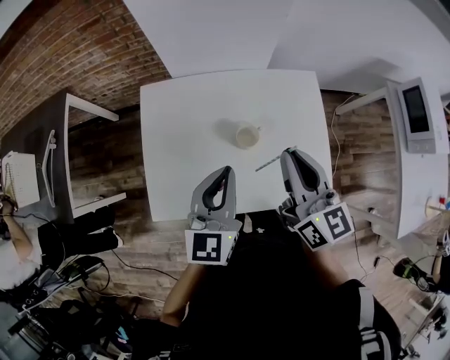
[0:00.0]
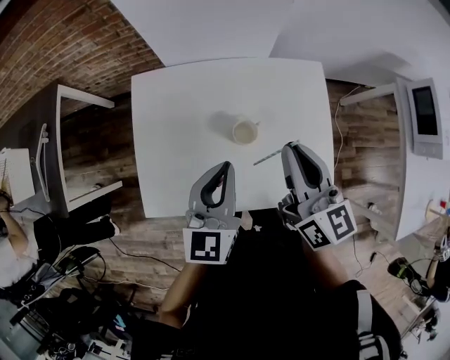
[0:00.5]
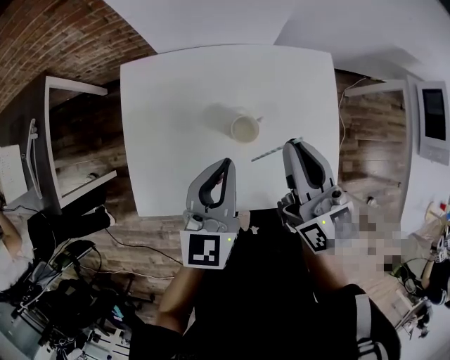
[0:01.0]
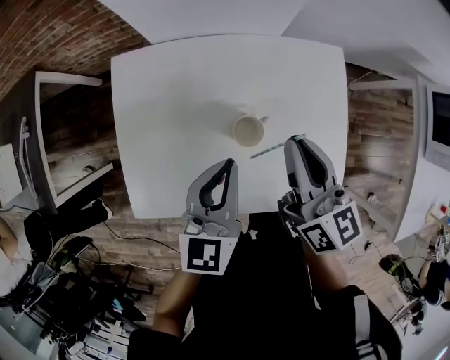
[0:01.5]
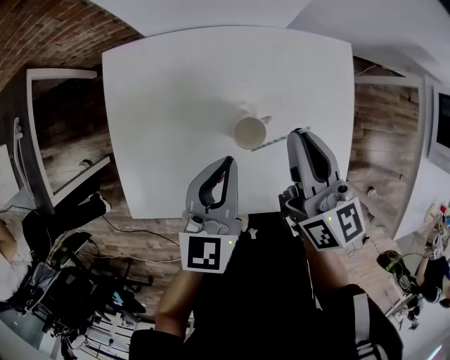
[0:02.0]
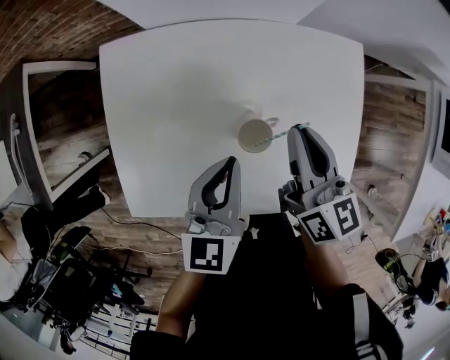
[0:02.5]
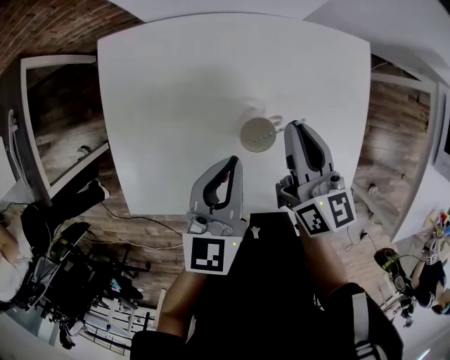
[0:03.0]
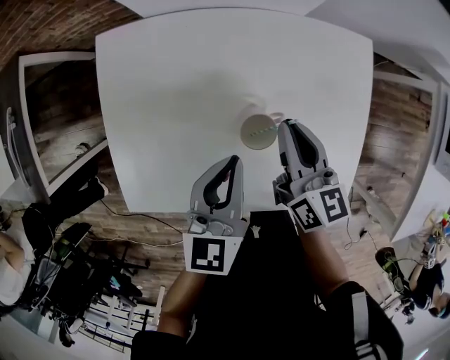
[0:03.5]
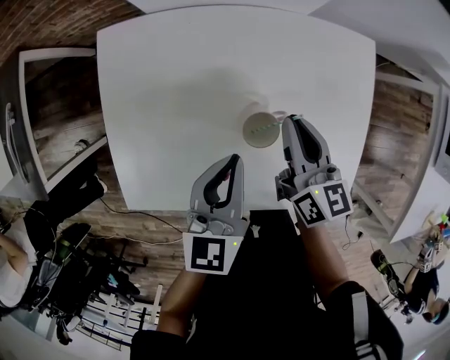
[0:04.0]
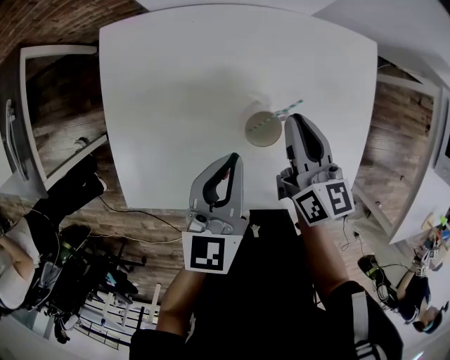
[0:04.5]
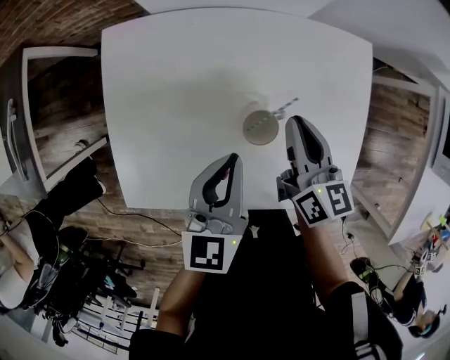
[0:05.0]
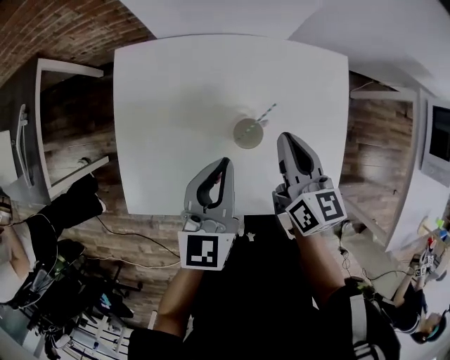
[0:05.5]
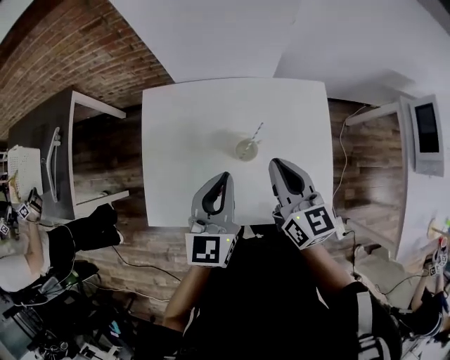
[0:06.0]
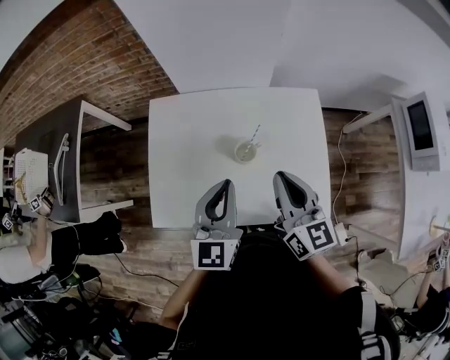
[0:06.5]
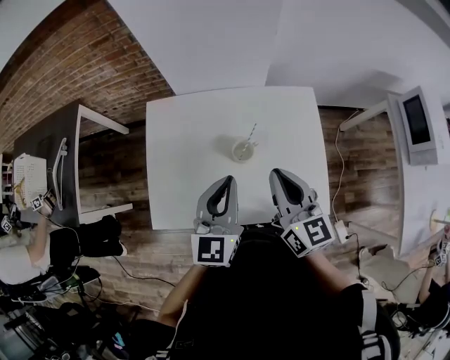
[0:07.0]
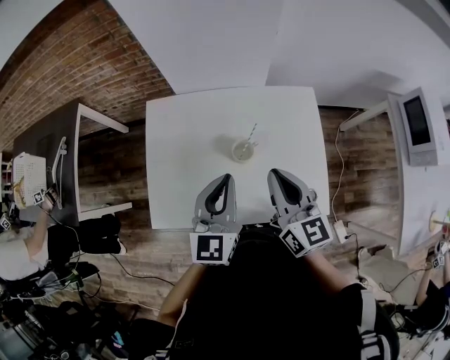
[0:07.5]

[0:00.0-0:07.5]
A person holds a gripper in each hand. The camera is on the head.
0:00.0 to 0:02.0: The grippers both shift downward and forward by approximately 15 cm.
0:02.0 to 0:04.0: The right gripper shifts about 10 cm downward.
0:04.0 to 0:05.5: Both grippers move upward, roughly 5 cm.
0:05.5 to 0:07.5: The grippers both shift upward and backward by roughly 15 cm.

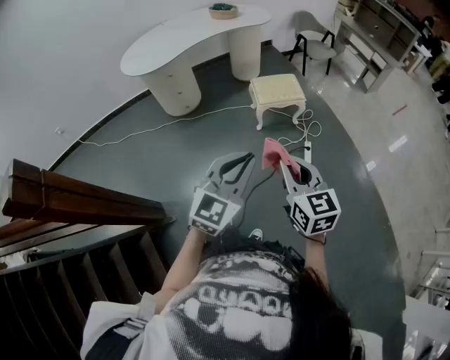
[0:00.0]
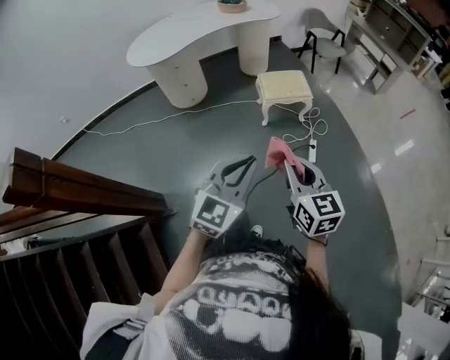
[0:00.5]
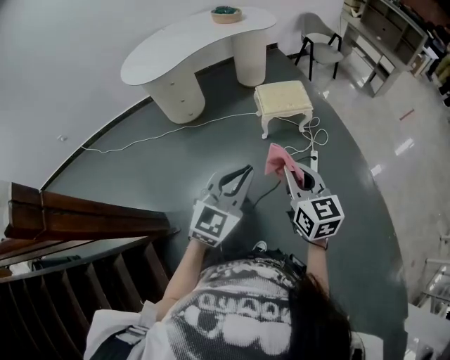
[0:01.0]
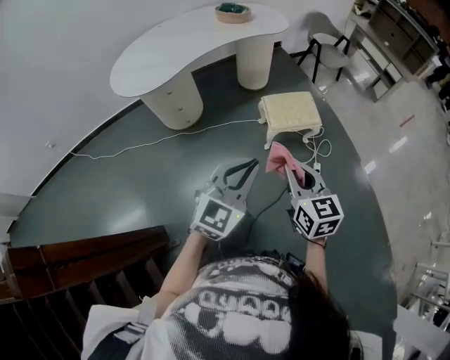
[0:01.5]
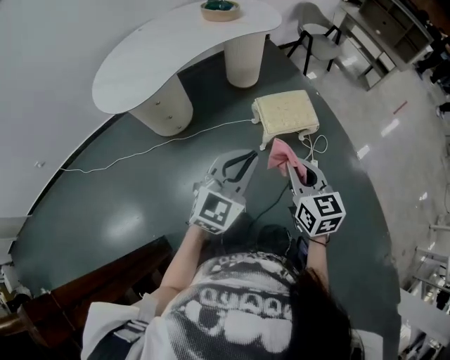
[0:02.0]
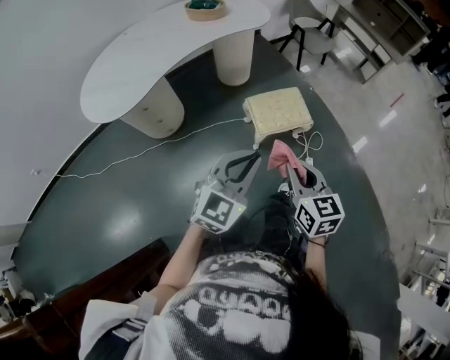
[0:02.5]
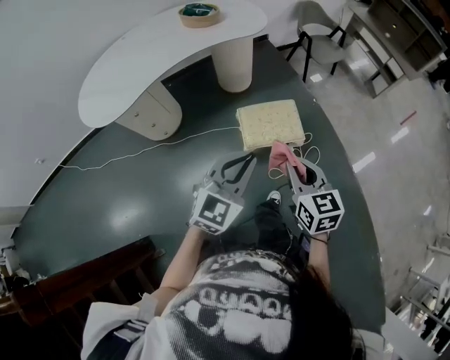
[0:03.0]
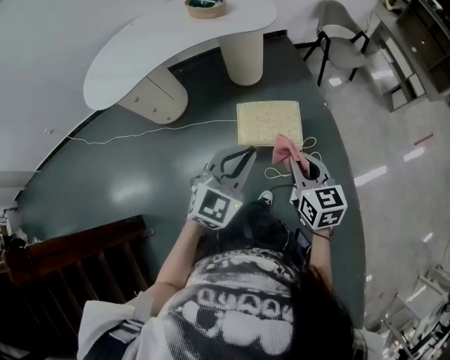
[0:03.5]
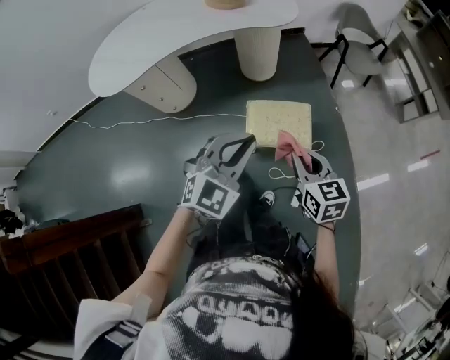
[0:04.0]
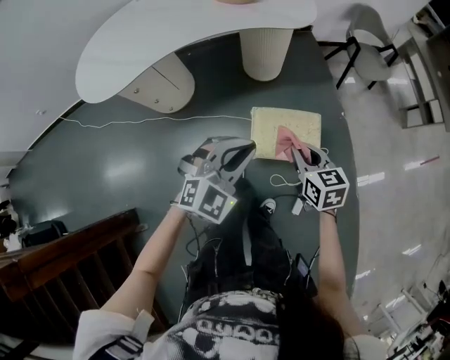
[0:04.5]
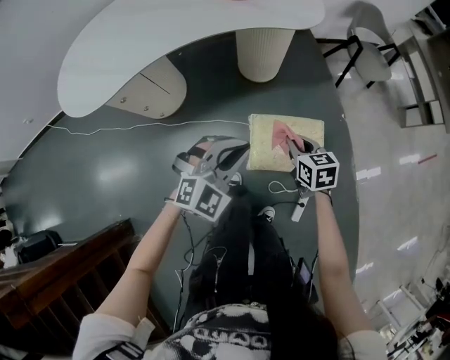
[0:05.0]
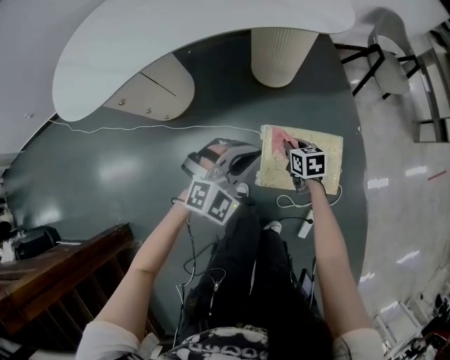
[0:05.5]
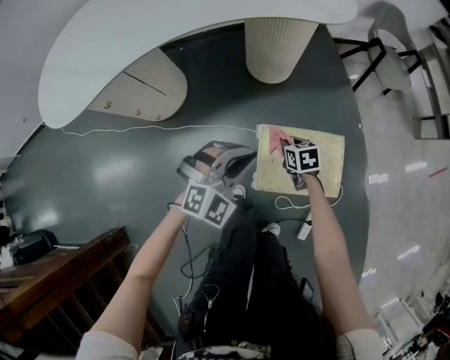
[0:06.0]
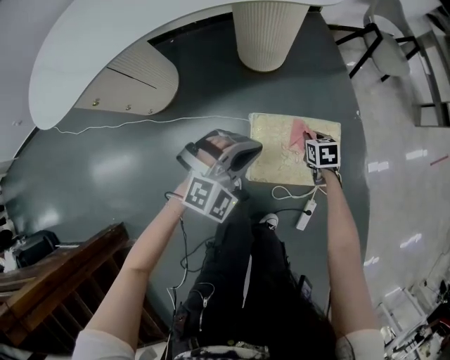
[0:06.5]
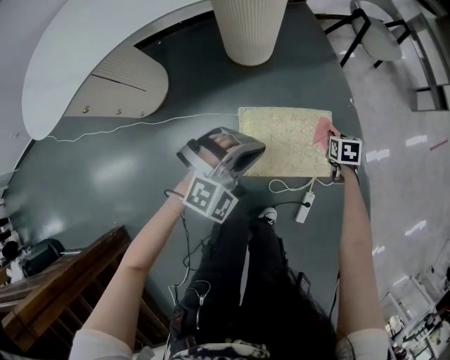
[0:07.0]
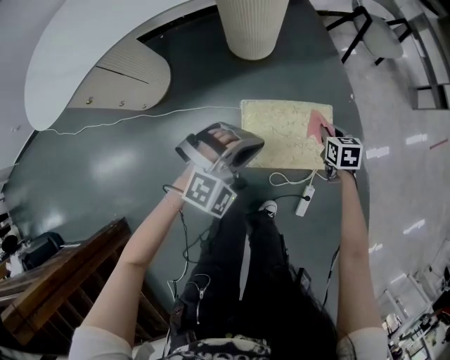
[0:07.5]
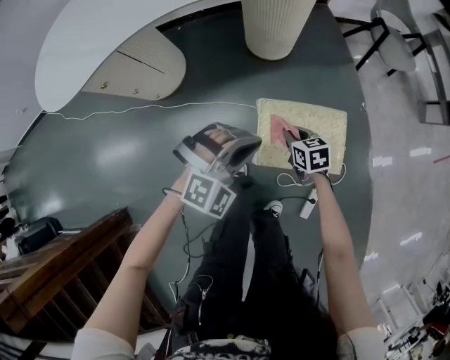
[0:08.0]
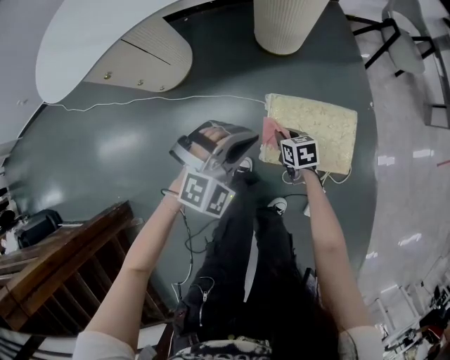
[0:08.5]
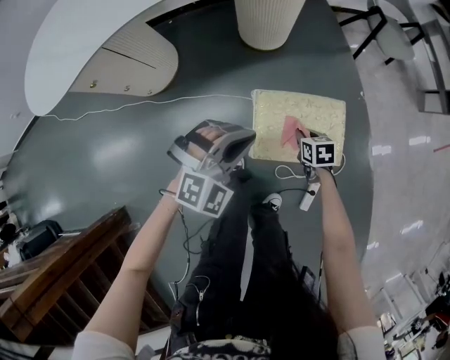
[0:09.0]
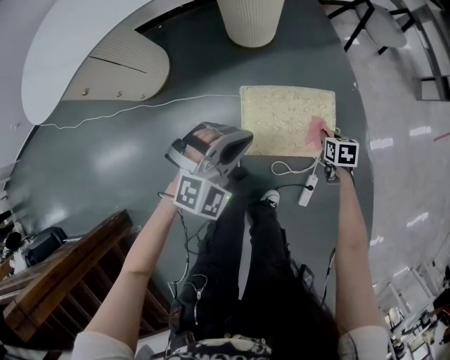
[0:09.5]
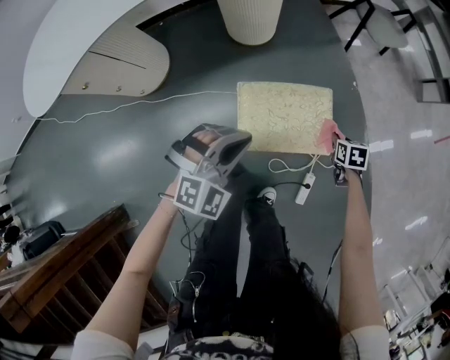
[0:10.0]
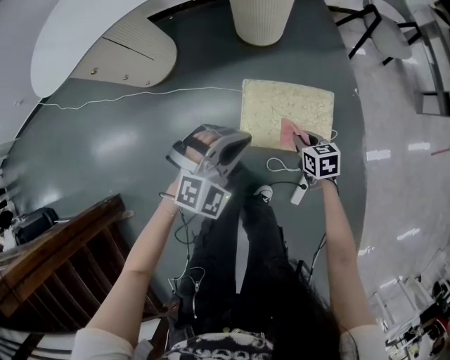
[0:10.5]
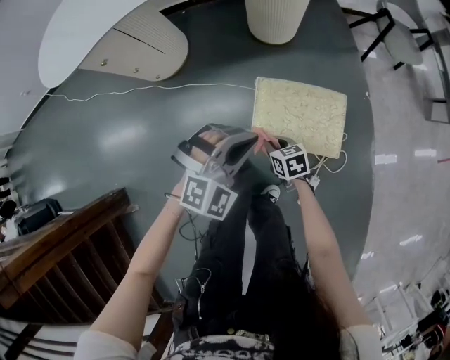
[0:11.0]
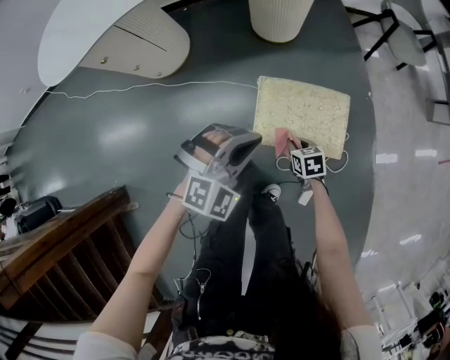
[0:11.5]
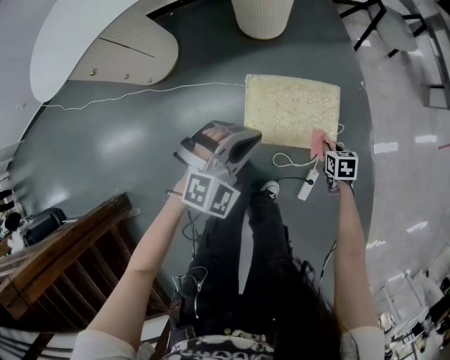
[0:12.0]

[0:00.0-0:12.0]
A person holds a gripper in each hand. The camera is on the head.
0:00.0 to 0:02.0: Both grippers travel together forward, about 35 cm.
0:02.0 to 0:04.0: The right gripper travels forward and to the right by roughly 35 cm, and turns by roughly 20 degrees; the left gripper travels to the right and forward by some 30 cm, and rotates roughly 20 degrees.
0:04.0 to 0:06.0: The grippers both shift downward and forward by about 50 cm. The right gripper changes its angle by some 30 degrees.
0:06.0 to 0:08.0: The left gripper reaches about 10 cm to the right, then returns; the right gripper heads backward, covering about 5 cm, and reaches roughly 25 cm to the right, then returns.
0:08.0 to 0:10.0: The right gripper moves to the right, roughly 30 cm, and turns by about 30 degrees. Meanwhile the left gripper goes approximately 5 cm to the right.
0:10.0 to 0:12.0: The right gripper moves roughly 5 cm upward and comes back.

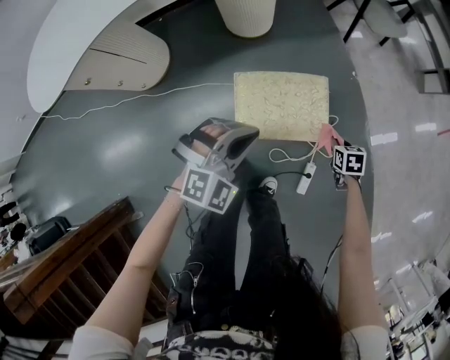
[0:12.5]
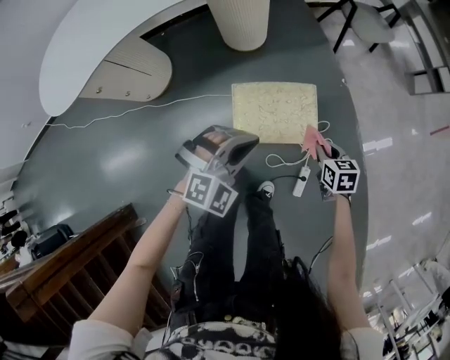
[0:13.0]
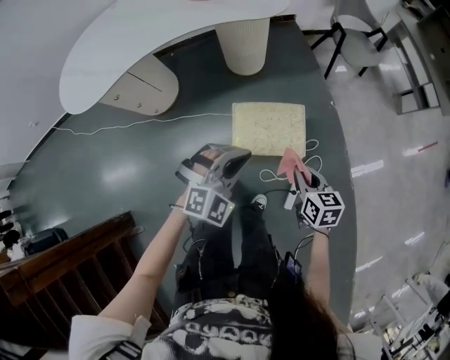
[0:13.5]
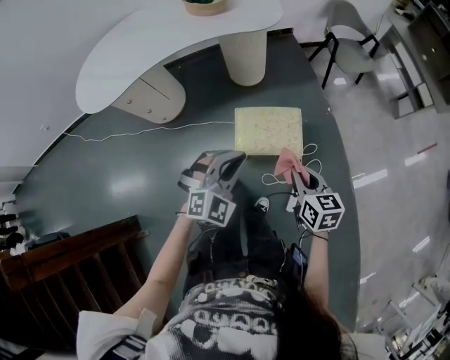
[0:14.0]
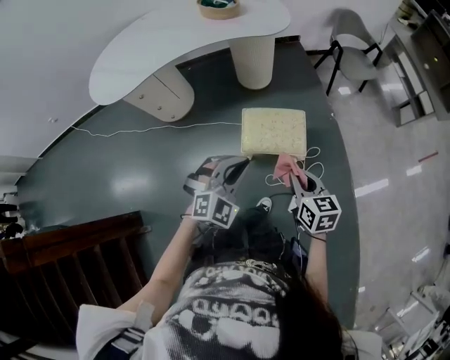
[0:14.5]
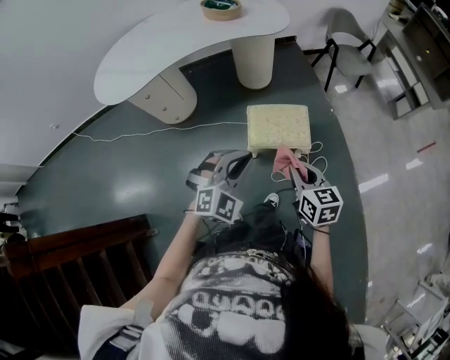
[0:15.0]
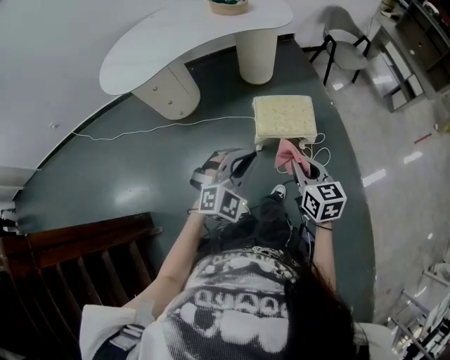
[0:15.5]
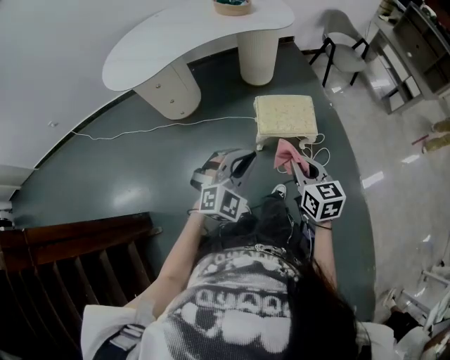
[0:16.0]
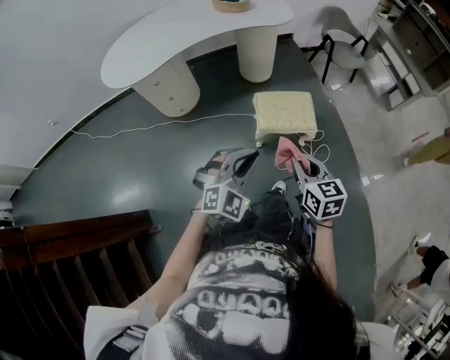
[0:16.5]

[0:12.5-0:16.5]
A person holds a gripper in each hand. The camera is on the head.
0:12.5 to 0:14.5: The left gripper travels upward and backward by approximately 25 cm, while the right gripper shifts about 40 cm upward and backward, and points its fingers about 40 degrees further upward.
0:14.5 to 0:16.5: The grippers both shift backward and to the left by about 20 cm.

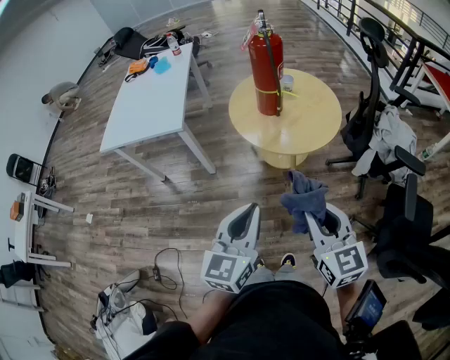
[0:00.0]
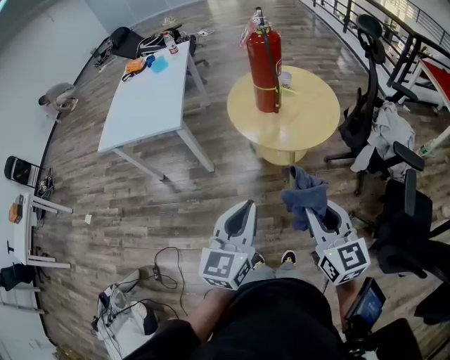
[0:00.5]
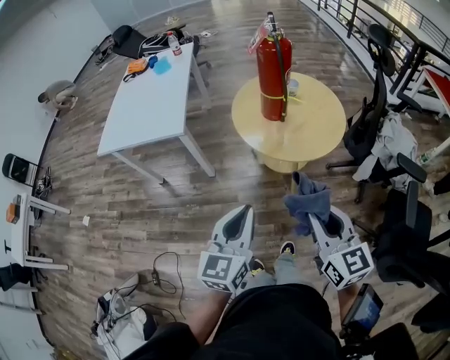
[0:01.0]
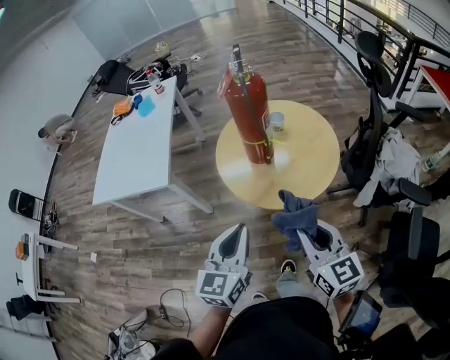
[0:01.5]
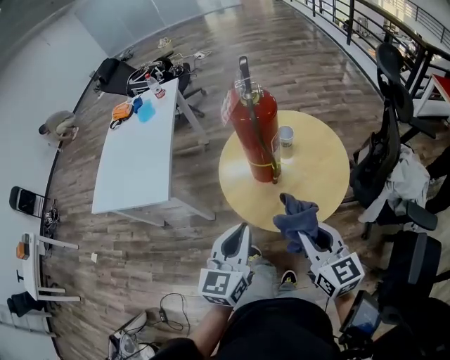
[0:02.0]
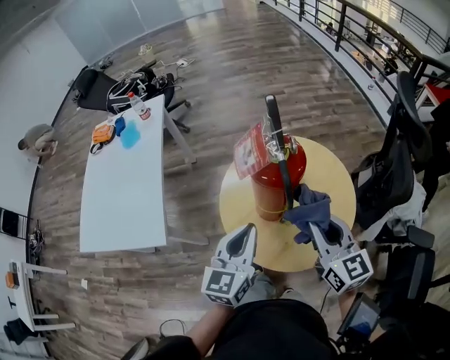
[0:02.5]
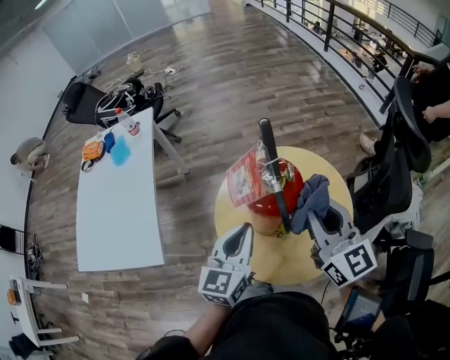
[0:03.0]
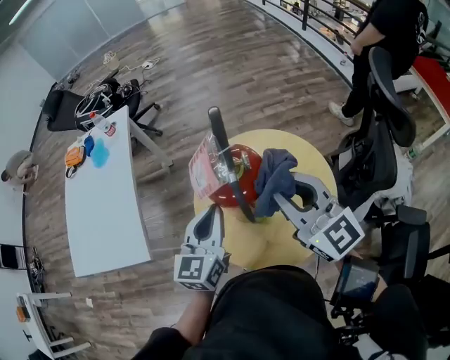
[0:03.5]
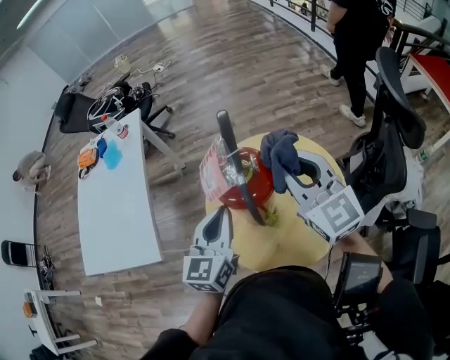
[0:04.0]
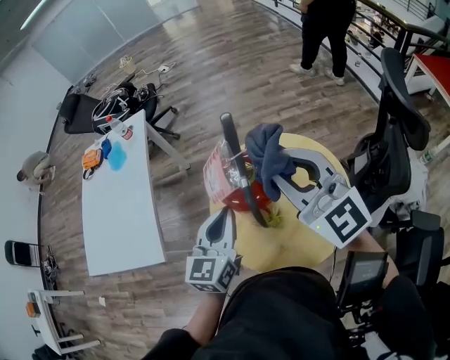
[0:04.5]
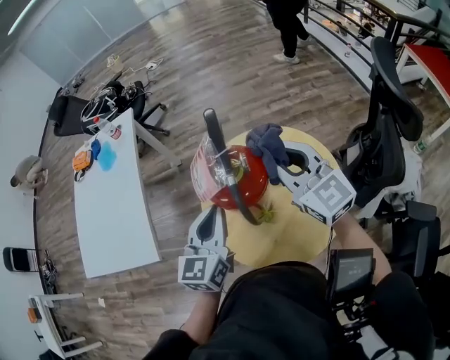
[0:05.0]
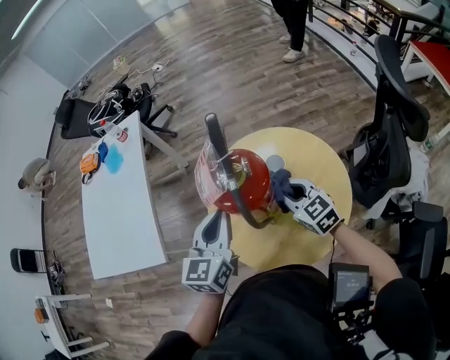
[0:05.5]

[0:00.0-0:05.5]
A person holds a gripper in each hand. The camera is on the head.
0:00.0 to 0:02.0: The grippers both shift forward by about 30 cm.
0:02.0 to 0:03.5: The right gripper is displaced forward and upward by roughly 30 cm, and changes its angle by about 20 degrees; the left gripper goes approximately 25 cm forward.
0:03.5 to 0:05.5: The right gripper moves downward, approximately 20 cm, and changes its angle by approximately 30 degrees.
